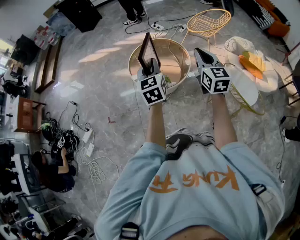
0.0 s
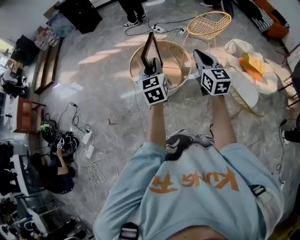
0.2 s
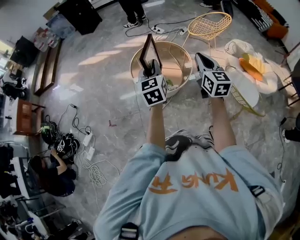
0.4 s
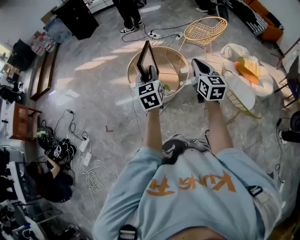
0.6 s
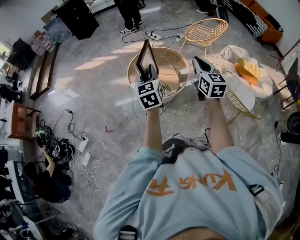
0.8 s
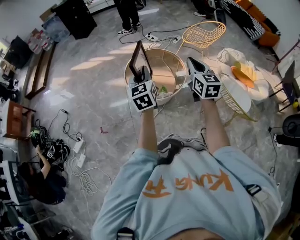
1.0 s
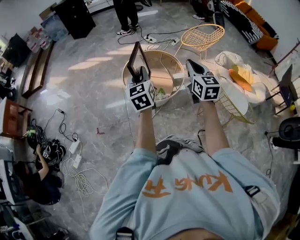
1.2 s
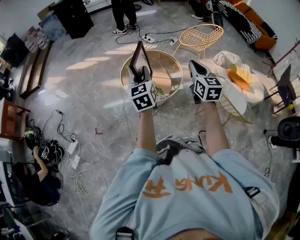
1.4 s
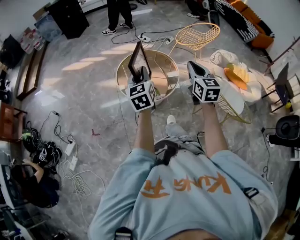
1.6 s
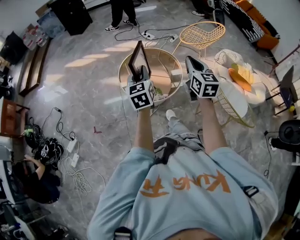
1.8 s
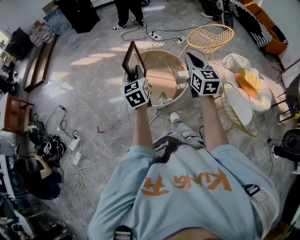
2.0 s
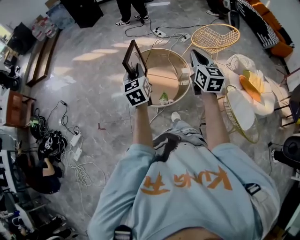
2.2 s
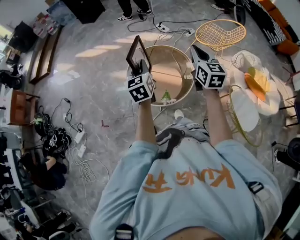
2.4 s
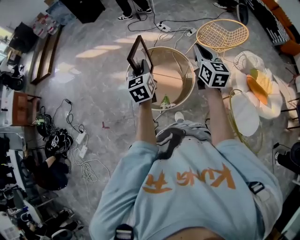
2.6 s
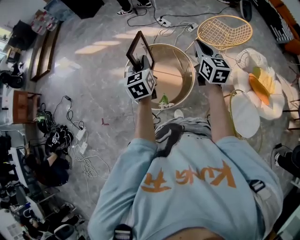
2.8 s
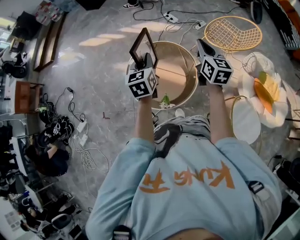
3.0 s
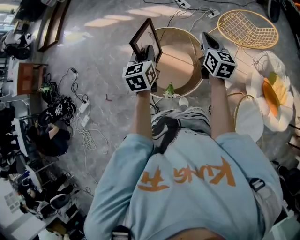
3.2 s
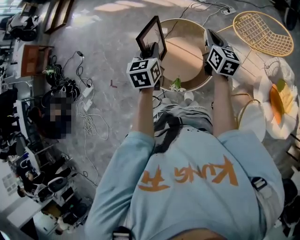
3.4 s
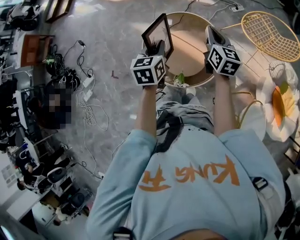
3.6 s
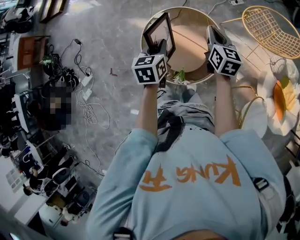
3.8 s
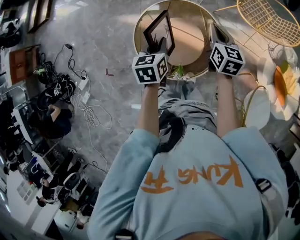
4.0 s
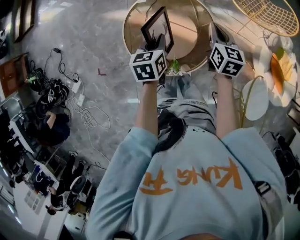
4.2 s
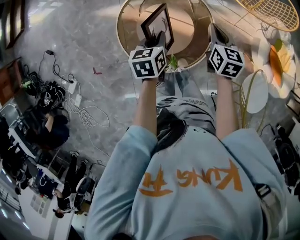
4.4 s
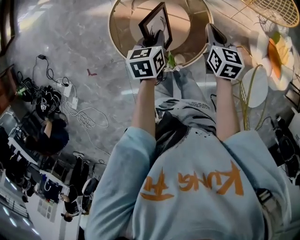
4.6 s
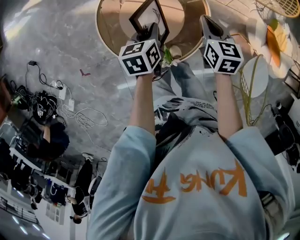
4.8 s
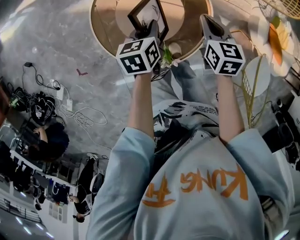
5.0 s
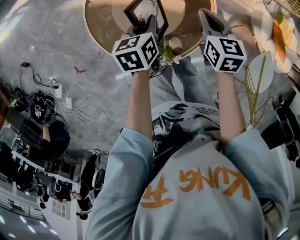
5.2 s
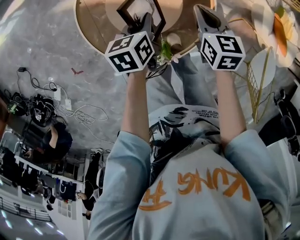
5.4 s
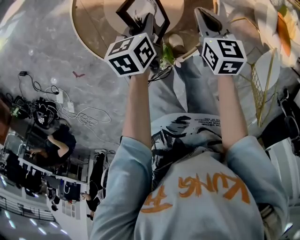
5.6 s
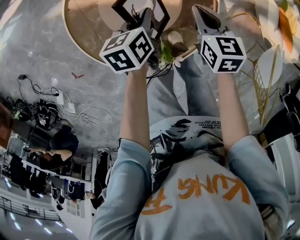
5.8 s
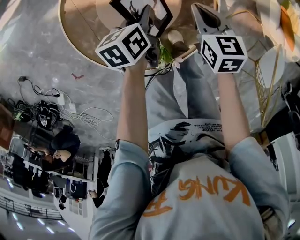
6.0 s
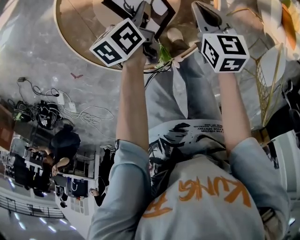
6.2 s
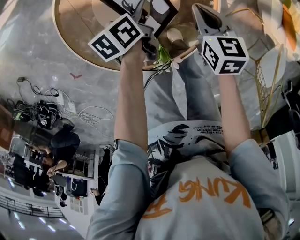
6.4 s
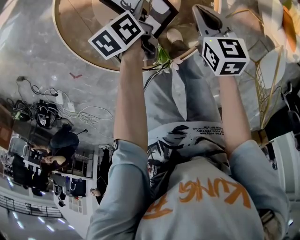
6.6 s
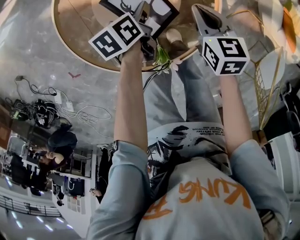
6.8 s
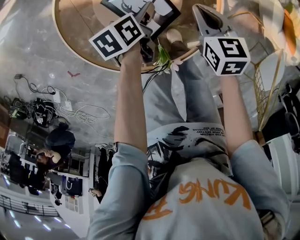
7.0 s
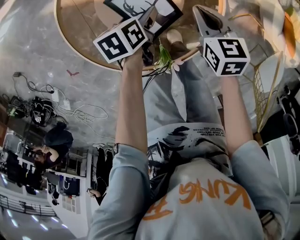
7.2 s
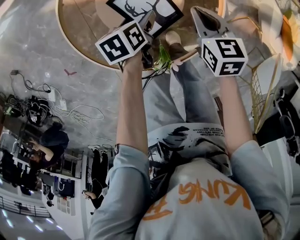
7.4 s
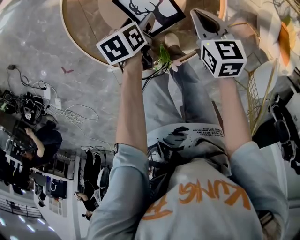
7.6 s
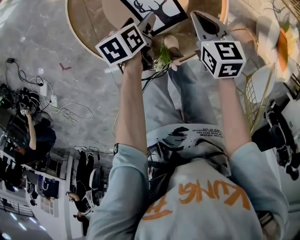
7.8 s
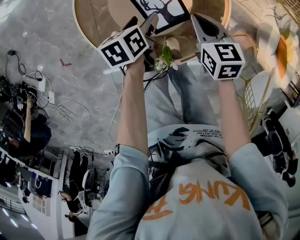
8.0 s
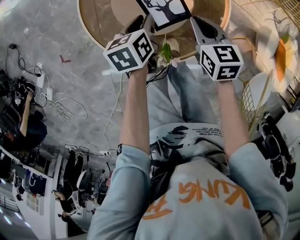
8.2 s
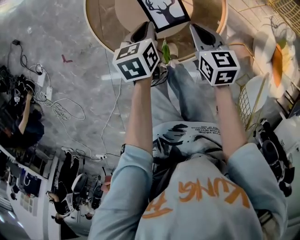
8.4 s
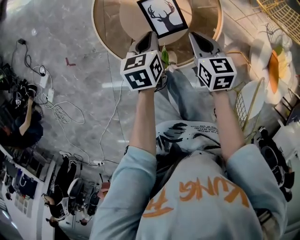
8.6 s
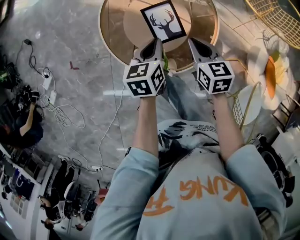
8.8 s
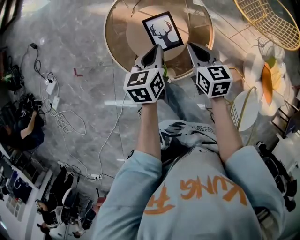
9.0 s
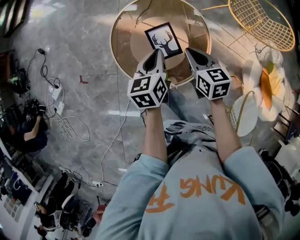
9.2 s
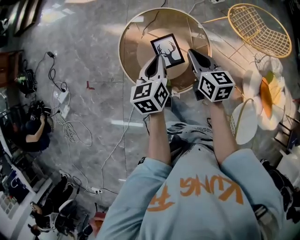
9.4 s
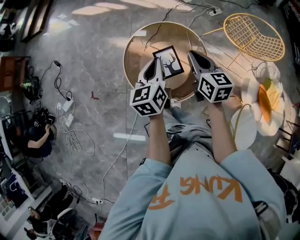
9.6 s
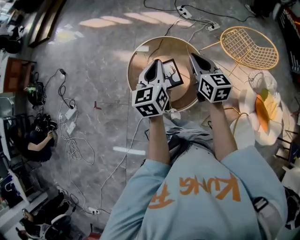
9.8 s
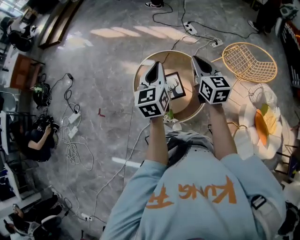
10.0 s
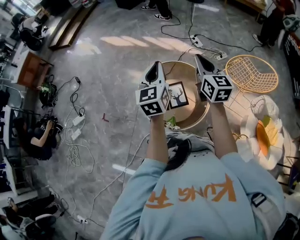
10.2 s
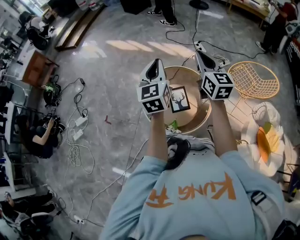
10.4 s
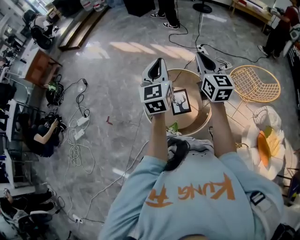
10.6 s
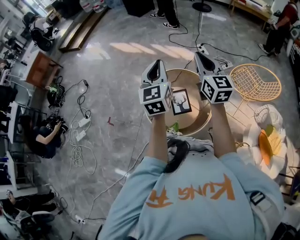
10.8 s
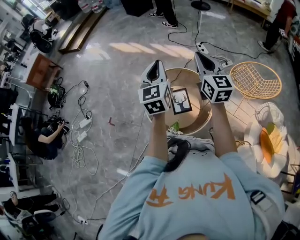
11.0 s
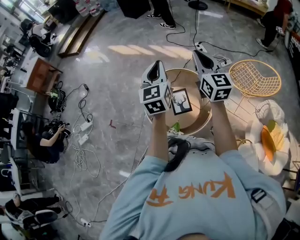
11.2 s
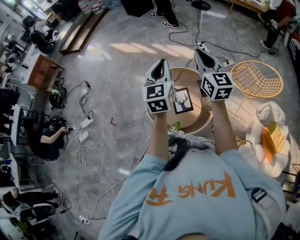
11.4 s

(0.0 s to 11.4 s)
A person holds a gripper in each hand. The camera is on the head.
0.0 s - 1.4 s: The right gripper shifts by some 5 cm. The left gripper travels to the left by some 5 cm.
1.4 s - 2.8 s: The grippers both shift forward by approximately 25 cm.
2.8 s - 4.2 s: Both grippers move downward and forward, approximately 20 cm. The left gripper swivels some 30 degrees. The right gripper changes its angle by some 20 degrees.
4.2 s - 5.6 s: Both grippers move downward, some 25 cm.
5.6 s - 7.2 s: The right gripper goes approximately 5 cm downward. The left gripper heads downward, covering some 10 cm, and opens up.
7.2 s - 8.6 s: The right gripper ends up roughly 10 cm from where it was; the left gripper heads upward, covering roughly 15 cm, rotates approximately 20 degrees, and closes up.
8.6 s - 10.0 s: The two grippers go approximately 40 cm upward. The left gripper angles its fingers upward, by roughly 40 degrees; the right gripper tips its fingers upward by about 30 degrees.
10.0 s - 11.4 s: Both grippers travel together upward, some 10 cm.

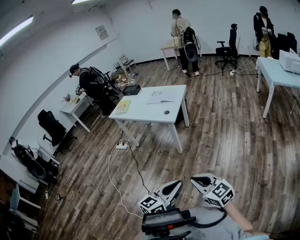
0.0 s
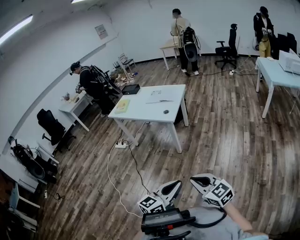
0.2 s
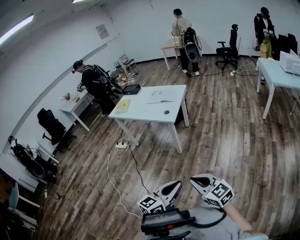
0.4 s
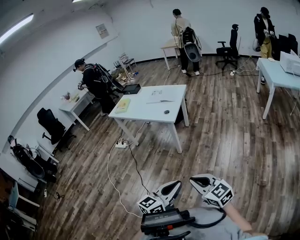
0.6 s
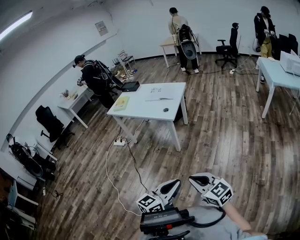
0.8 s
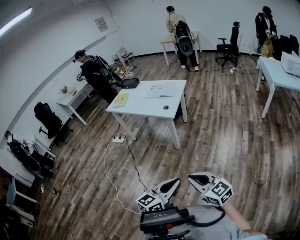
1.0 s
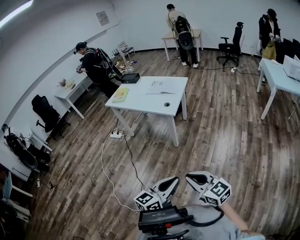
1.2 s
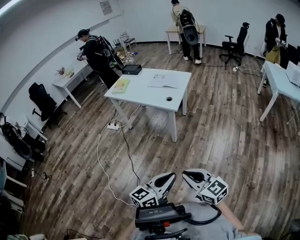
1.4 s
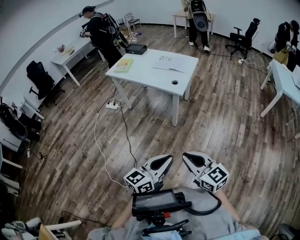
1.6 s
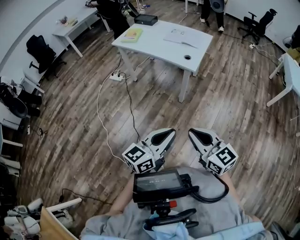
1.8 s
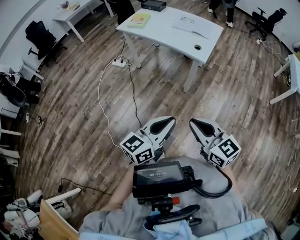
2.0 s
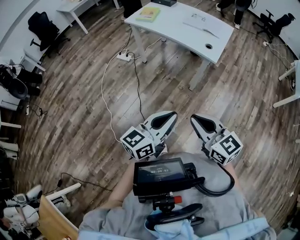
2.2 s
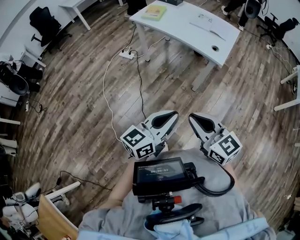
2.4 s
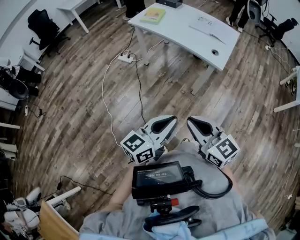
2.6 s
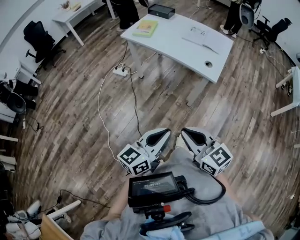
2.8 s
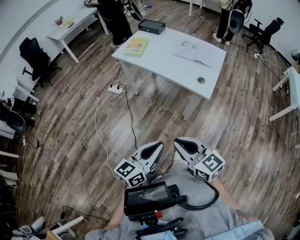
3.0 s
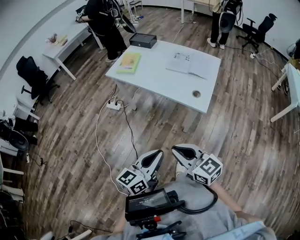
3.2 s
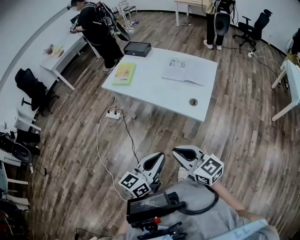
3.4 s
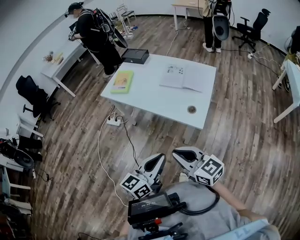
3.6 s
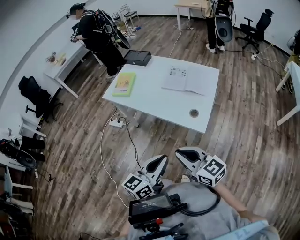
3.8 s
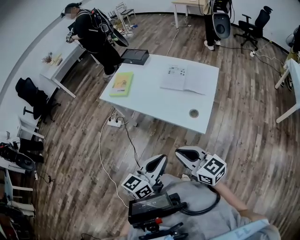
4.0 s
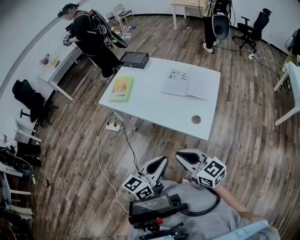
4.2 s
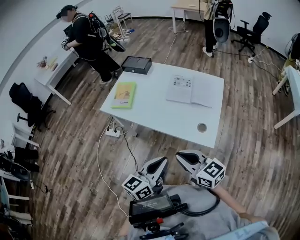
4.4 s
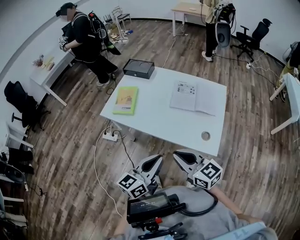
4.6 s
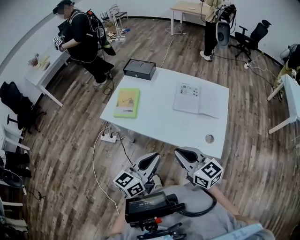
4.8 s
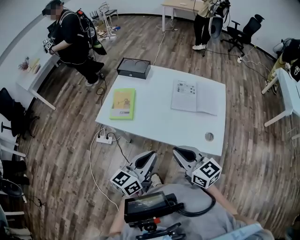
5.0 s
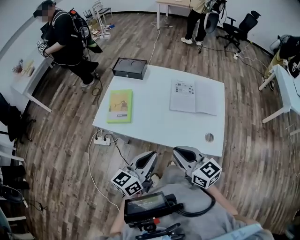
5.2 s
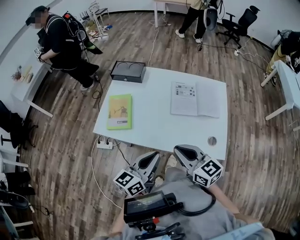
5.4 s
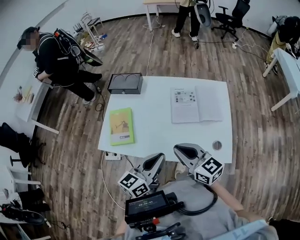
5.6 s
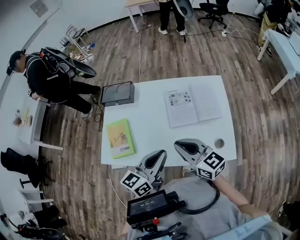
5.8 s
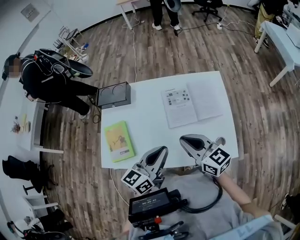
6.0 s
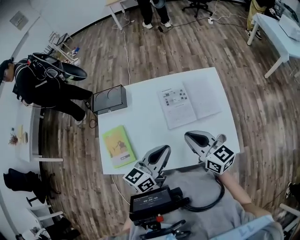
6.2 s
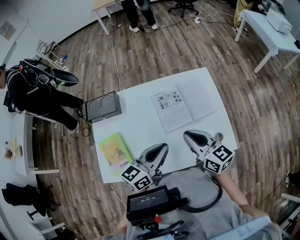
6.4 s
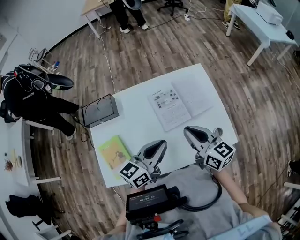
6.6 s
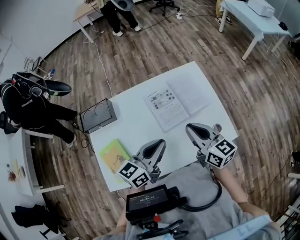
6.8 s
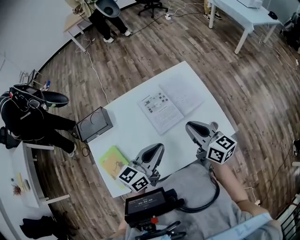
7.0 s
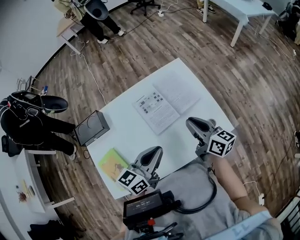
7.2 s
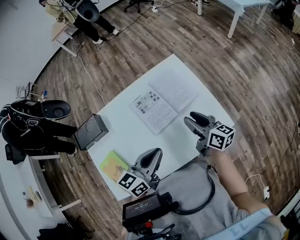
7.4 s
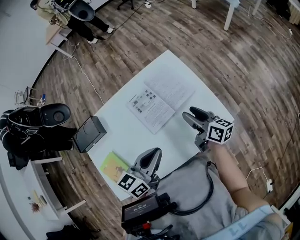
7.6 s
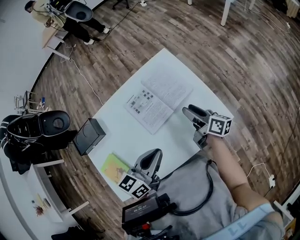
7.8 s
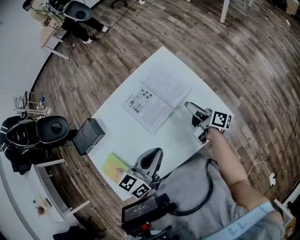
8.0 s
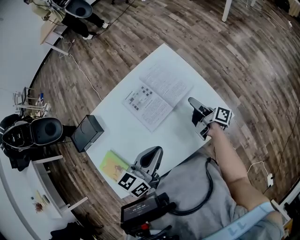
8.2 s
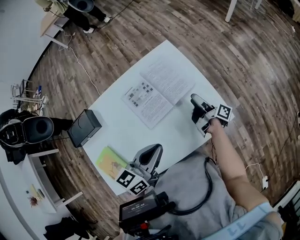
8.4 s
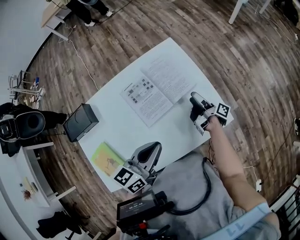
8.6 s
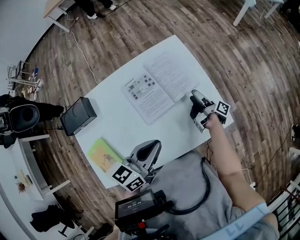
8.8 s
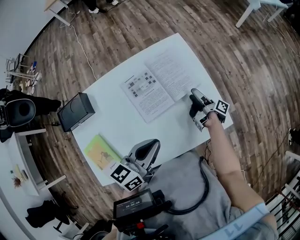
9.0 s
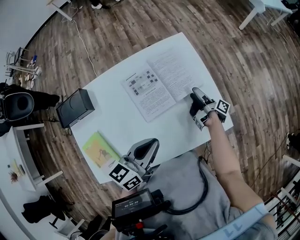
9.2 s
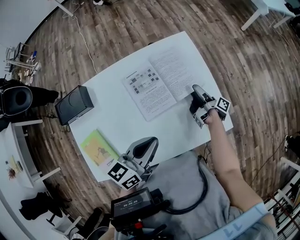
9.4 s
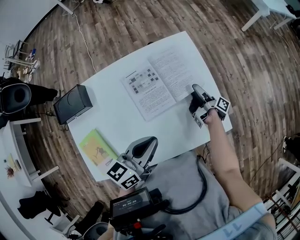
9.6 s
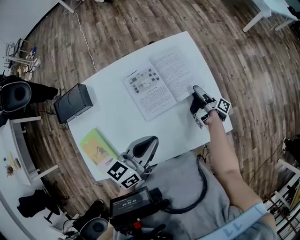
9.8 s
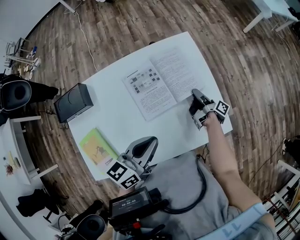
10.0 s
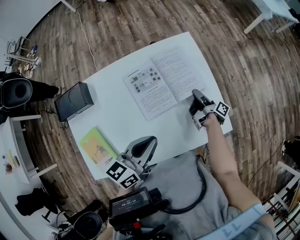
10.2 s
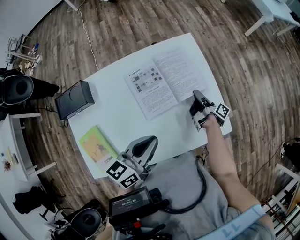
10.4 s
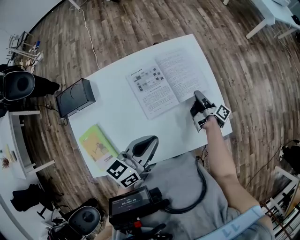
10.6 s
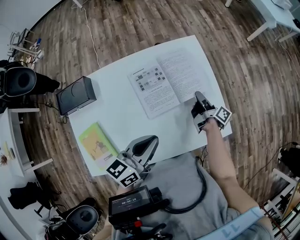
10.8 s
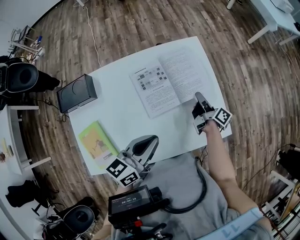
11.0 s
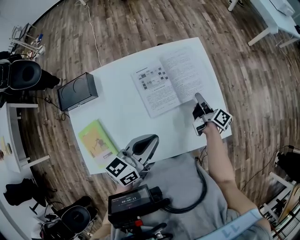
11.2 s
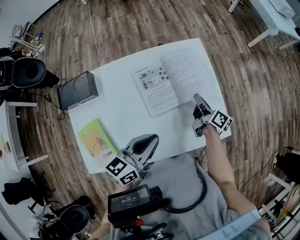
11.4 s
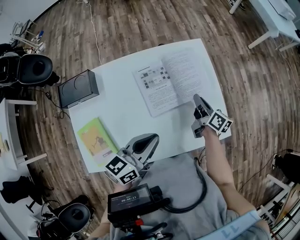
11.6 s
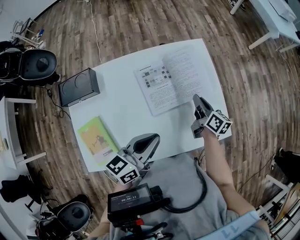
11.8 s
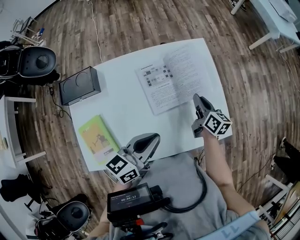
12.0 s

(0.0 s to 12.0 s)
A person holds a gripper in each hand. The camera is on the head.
0.0 s - 1.6 s: The two grippers go some 10 cm to the left and forward.
1.6 s - 3.0 s: The two grippers go approximately 30 cm forward and to the left.
3.0 s - 4.4 s: The grippers both shift forward by roughly 30 cm.
4.4 s - 6.0 s: Both grippers move forward, some 30 cm. The right gripper changes its angle by some 30 degrees. Meanwhile the left gripper turns by about 20 degrees.
6.0 s - 7.6 s: The right gripper changes place by about 20 cm, rotates about 50 degrees, and opens its fingers. The left gripper changes place by approximately 5 cm, and turns by roughly 30 degrees.
7.6 s - 9.0 s: The right gripper heads downward and forward, covering approximately 15 cm, and rotates around the line of its fingers by approximately 50 degrees, clockwise from behind.
9.0 s - 10.4 s: The right gripper closes its fingers.
10.4 s - 12.0 s: The right gripper travels upward and to the left by about 10 cm, and rotates around the line of its fingers by roughly 60 degrees, counterclockwise from behind.
